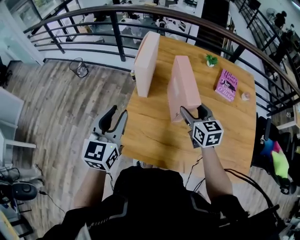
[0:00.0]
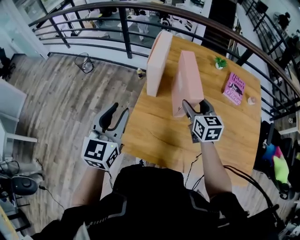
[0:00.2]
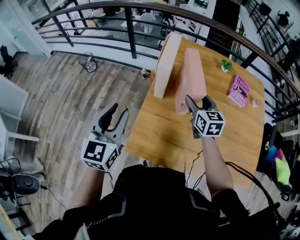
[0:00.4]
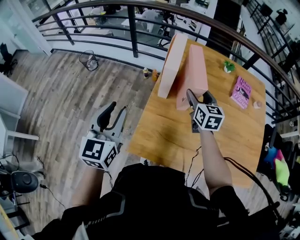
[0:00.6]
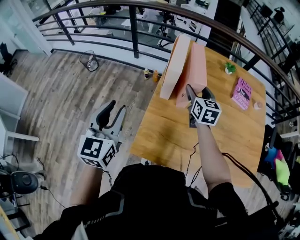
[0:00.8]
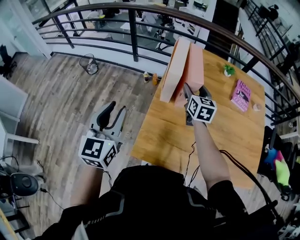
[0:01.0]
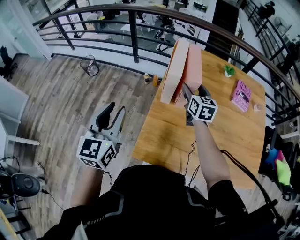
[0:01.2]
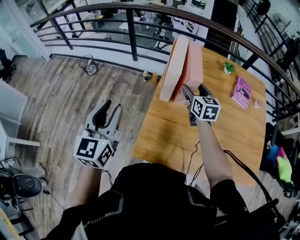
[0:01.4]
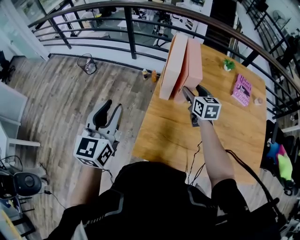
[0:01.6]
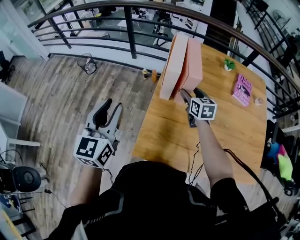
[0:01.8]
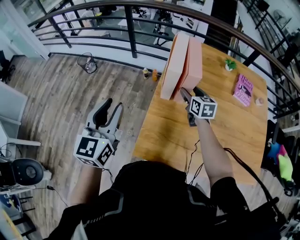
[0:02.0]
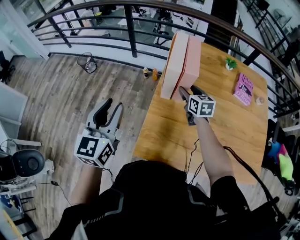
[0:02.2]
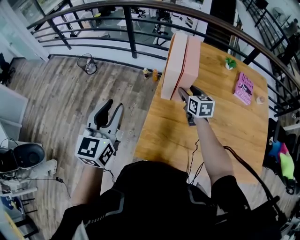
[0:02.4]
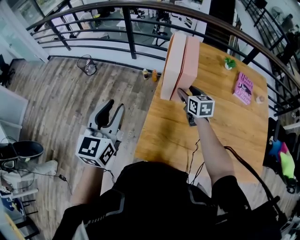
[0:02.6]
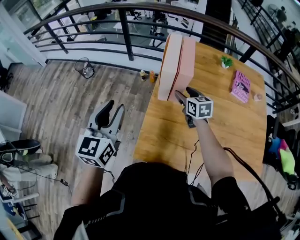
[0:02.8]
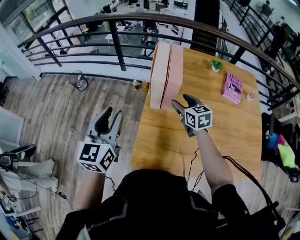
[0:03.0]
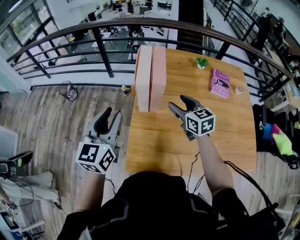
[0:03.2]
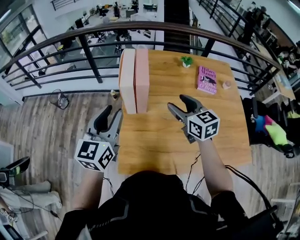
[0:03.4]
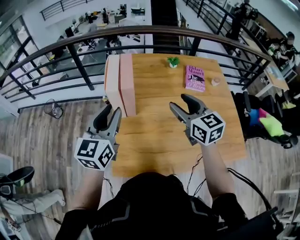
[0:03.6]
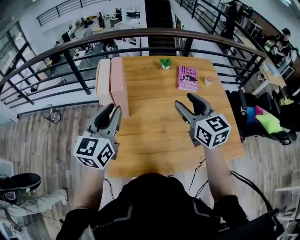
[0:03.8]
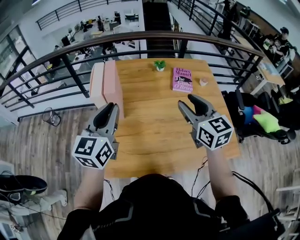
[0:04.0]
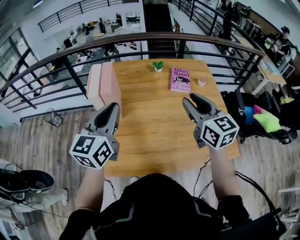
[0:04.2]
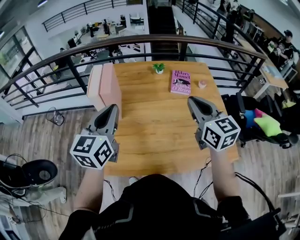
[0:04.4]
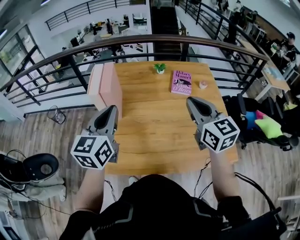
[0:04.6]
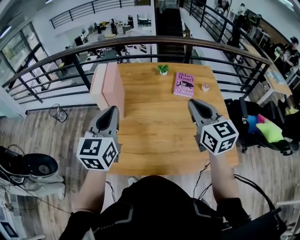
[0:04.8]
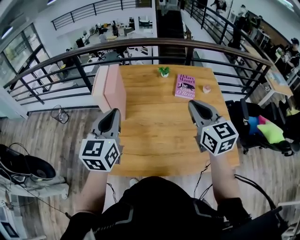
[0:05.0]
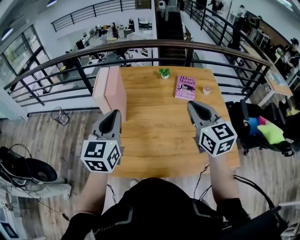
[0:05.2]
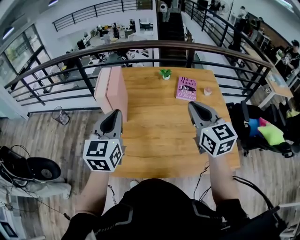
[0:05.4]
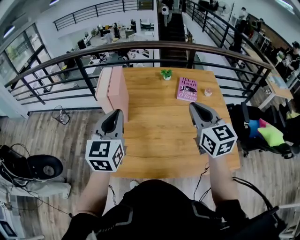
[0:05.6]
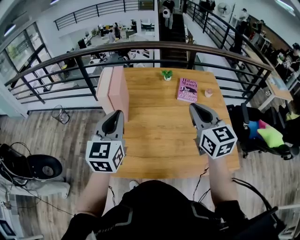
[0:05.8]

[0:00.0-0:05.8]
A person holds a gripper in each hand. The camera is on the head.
0.0 to 1.4 s: The right gripper is displaced forward and to the left by roughly 15 cm, while the left gripper goes roughly 15 cm to the left.
1.4 to 2.8 s: The right gripper shifts approximately 5 cm downward.
2.8 to 4.4 s: The right gripper travels to the right, upward and backward by roughly 50 cm, swivels approximately 30 degrees, and closes up. The left gripper heads to the right, covering roughly 30 cm, and closes.
4.4 to 5.8 s: The grippers move only a little.

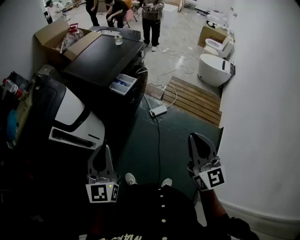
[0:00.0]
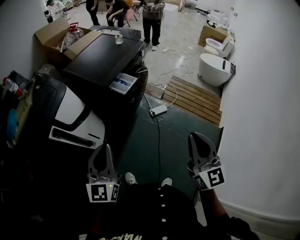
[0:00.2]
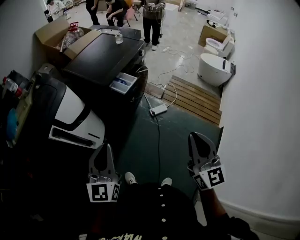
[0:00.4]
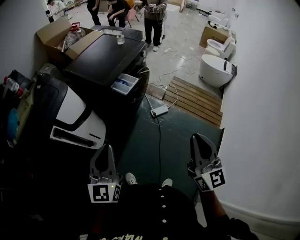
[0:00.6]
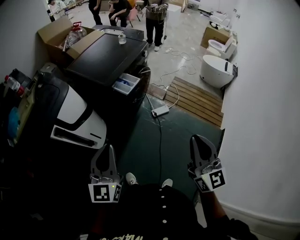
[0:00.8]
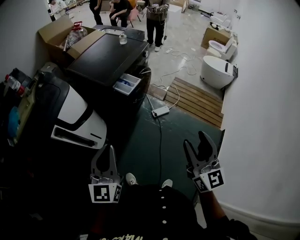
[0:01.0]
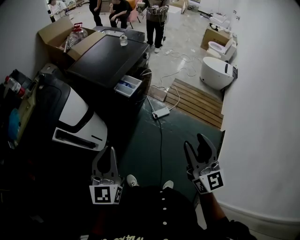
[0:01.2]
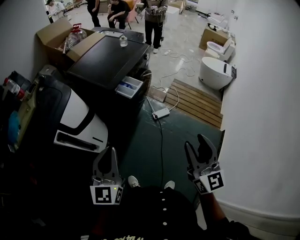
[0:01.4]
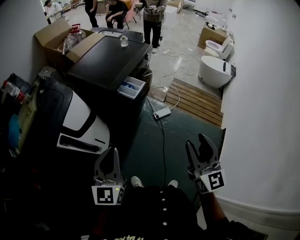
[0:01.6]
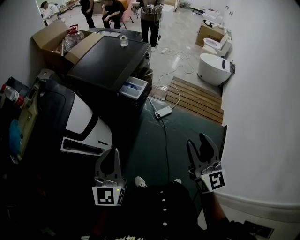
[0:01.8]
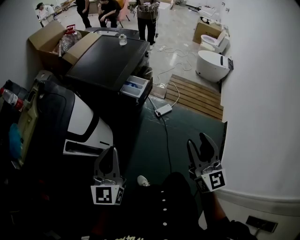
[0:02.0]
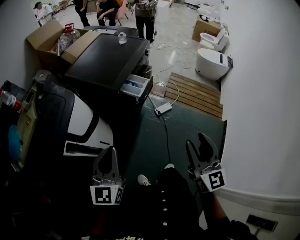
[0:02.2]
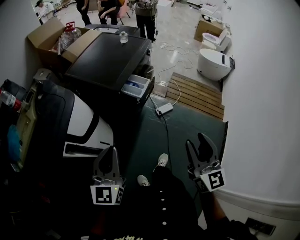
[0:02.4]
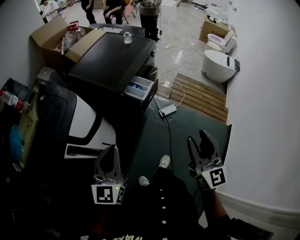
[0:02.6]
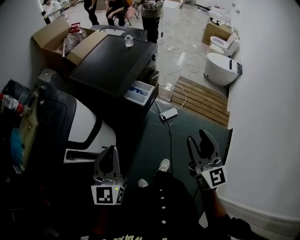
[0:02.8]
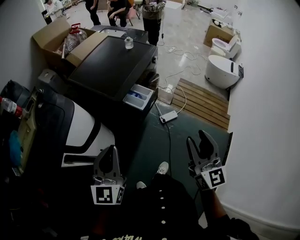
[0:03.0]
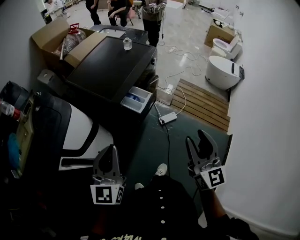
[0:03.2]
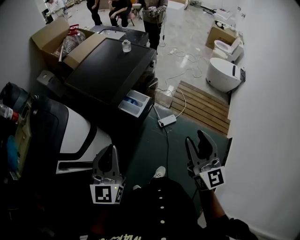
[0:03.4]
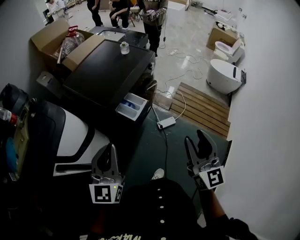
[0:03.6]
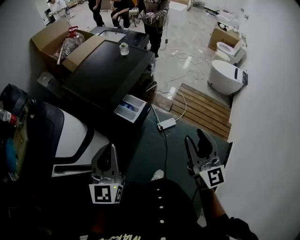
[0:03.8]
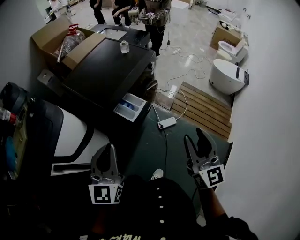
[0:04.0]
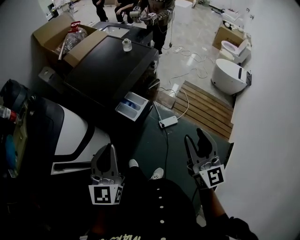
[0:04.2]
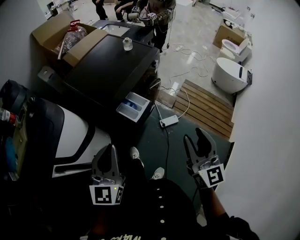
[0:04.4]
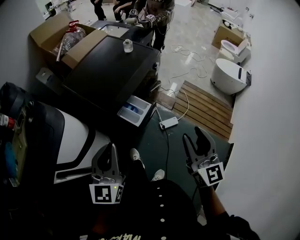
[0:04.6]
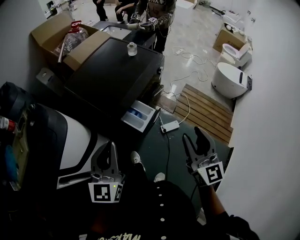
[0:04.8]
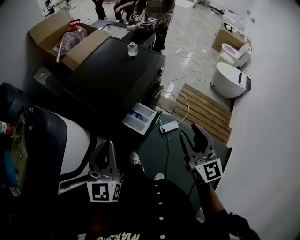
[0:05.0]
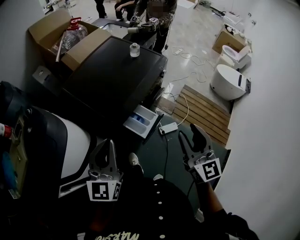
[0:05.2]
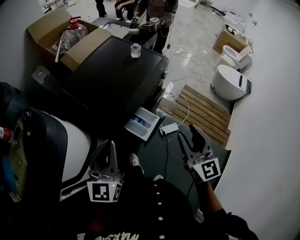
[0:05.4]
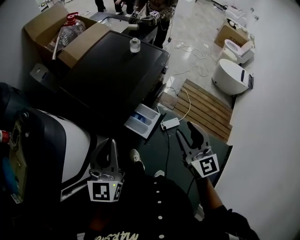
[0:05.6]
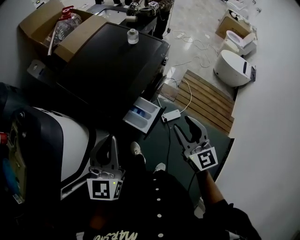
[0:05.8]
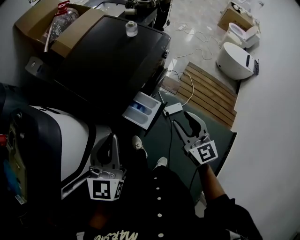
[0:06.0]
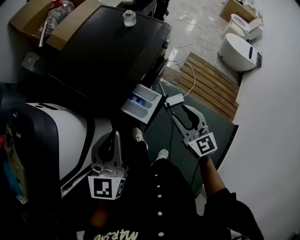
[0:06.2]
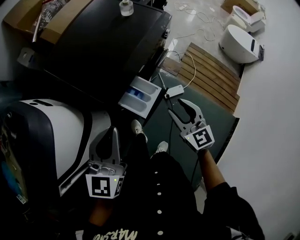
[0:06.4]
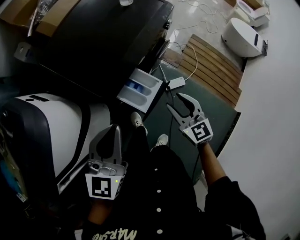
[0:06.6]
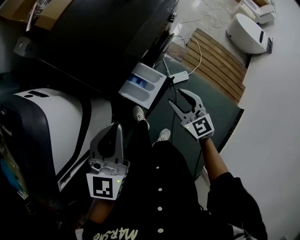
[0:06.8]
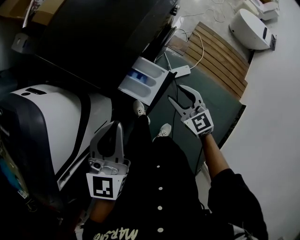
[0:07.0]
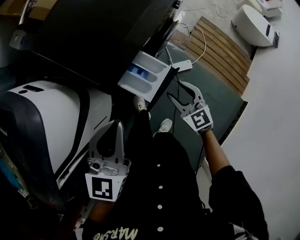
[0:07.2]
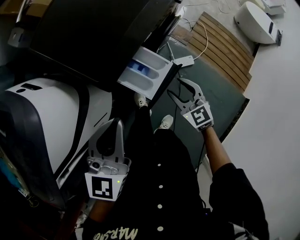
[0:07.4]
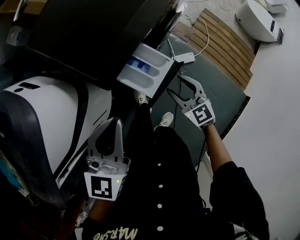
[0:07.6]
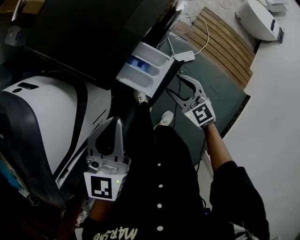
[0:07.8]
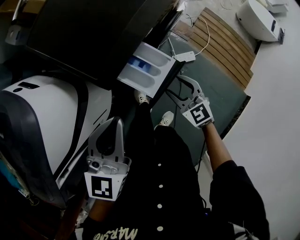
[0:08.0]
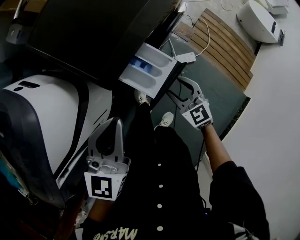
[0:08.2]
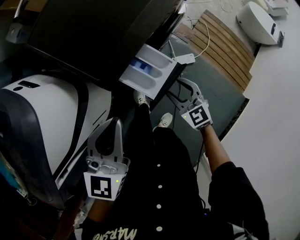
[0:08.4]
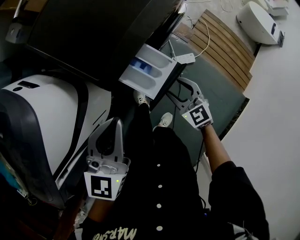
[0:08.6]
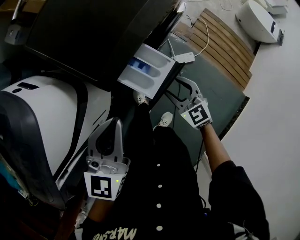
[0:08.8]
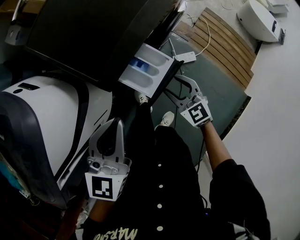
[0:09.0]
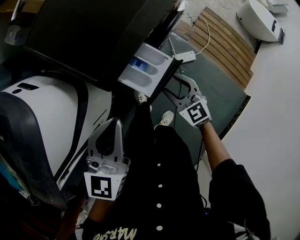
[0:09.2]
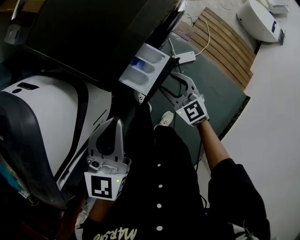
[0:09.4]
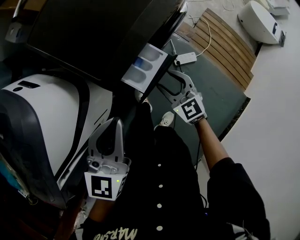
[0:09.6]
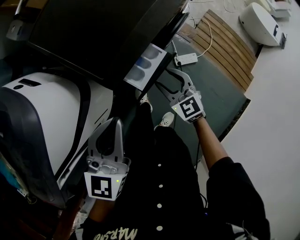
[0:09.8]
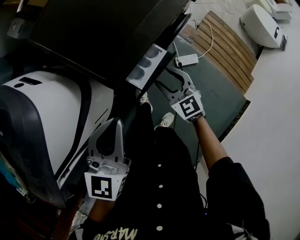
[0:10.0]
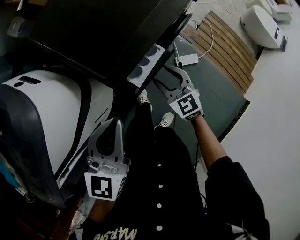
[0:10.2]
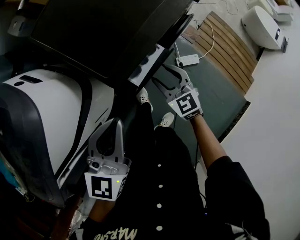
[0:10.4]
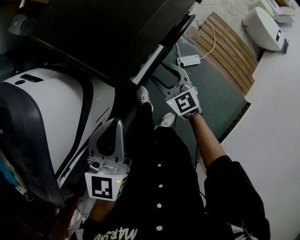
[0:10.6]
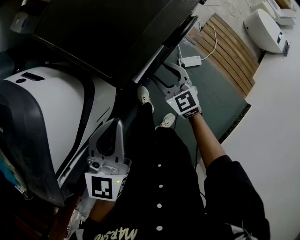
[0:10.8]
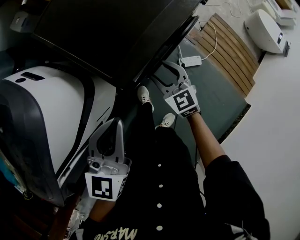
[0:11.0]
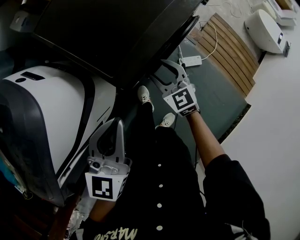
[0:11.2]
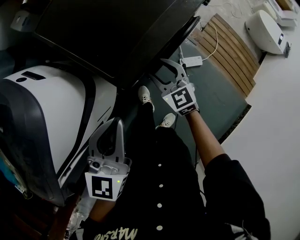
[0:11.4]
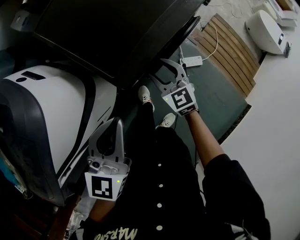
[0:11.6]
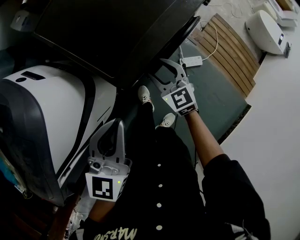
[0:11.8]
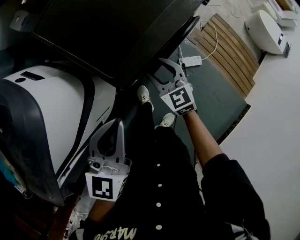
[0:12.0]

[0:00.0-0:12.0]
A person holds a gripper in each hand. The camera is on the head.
0.0 to 1.6 s: The right gripper goes approximately 5 cm to the left, and opens. Meanwhile the left gripper shifts by about 5 cm.
1.6 to 3.0 s: The two grippers go some 10 cm forward.
3.0 to 4.4 s: Both grippers move forward and to the right, about 10 cm.
4.4 to 6.0 s: The right gripper moves forward, downward and to the left, about 20 cm. The left gripper goes about 15 cm forward.
6.0 to 7.6 s: The right gripper moves downward, about 20 cm, and swivels about 30 degrees, while the left gripper heads downward, covering about 10 cm.
7.6 to 9.0 s: There are only small adjustments of the grippers.
9.0 to 10.4 s: The right gripper goes about 10 cm forward and to the left.
10.4 to 12.0 s: The grippers move only a little.

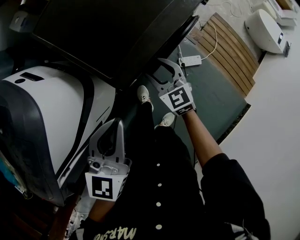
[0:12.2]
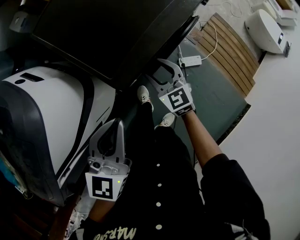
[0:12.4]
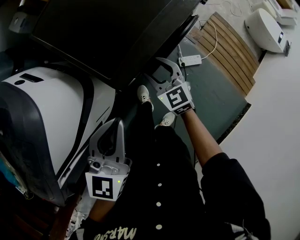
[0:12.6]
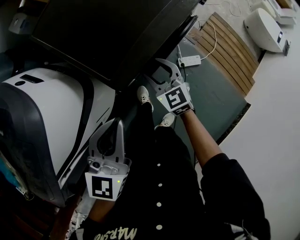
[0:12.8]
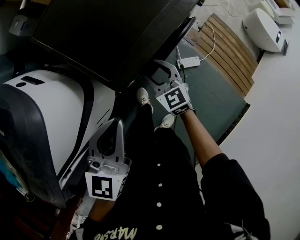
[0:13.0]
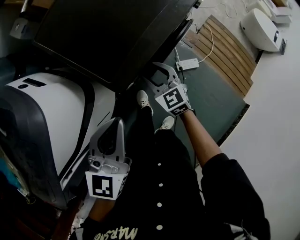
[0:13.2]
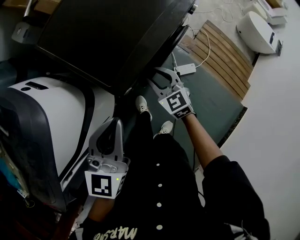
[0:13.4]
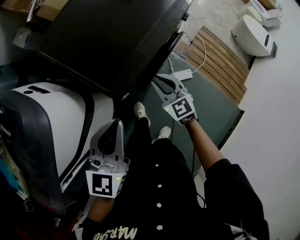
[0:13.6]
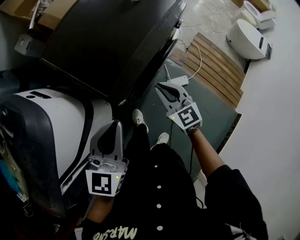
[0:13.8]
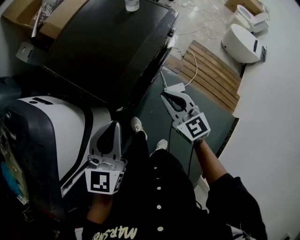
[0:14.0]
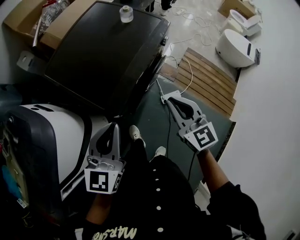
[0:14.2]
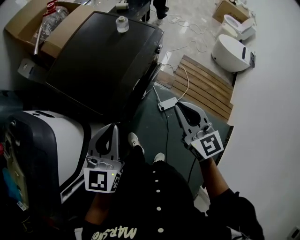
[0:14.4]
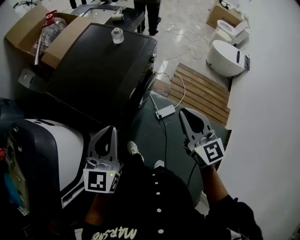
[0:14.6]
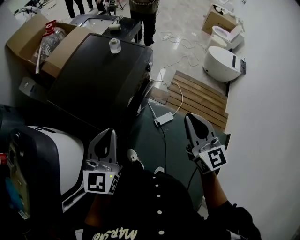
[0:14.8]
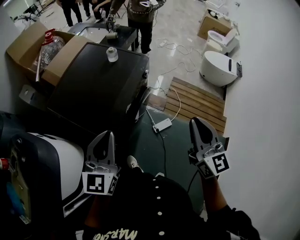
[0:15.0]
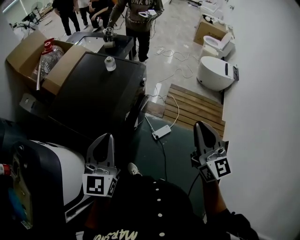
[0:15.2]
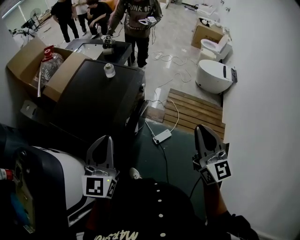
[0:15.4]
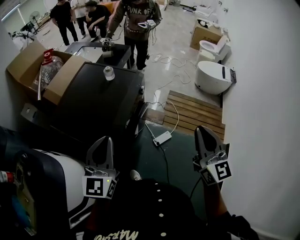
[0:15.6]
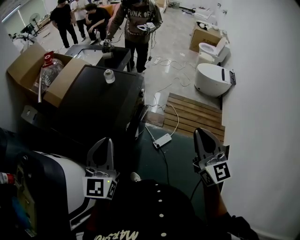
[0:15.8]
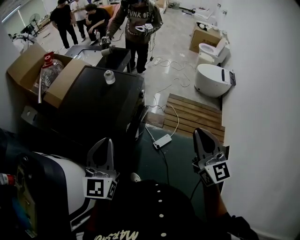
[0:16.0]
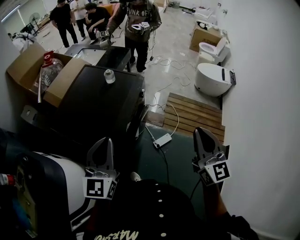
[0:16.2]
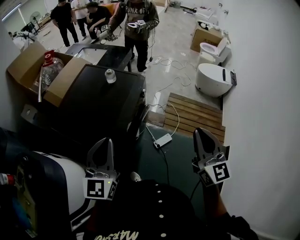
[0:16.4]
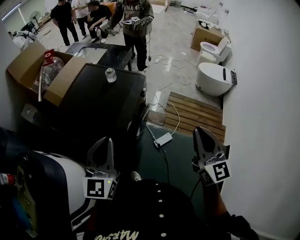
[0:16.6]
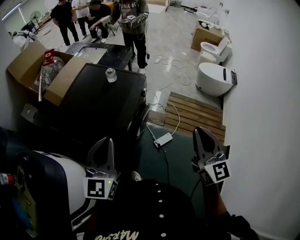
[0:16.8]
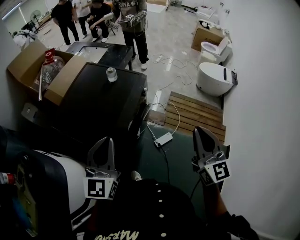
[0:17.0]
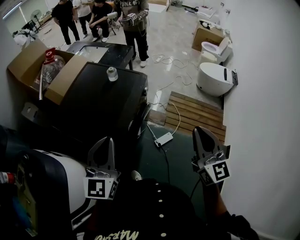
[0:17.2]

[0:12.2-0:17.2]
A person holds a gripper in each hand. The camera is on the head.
12.2 to 13.8 s: The right gripper is displaced upward and to the right by approximately 10 cm, and closes its fingers, while the left gripper goes about 5 cm upward.
13.8 to 15.6 s: The left gripper shifts roughly 10 cm upward and forward. Meanwhile the right gripper is displaced upward and to the right by about 35 cm, and changes its angle by approximately 40 degrees.
15.6 to 17.2 s: The grippers make only small movements.

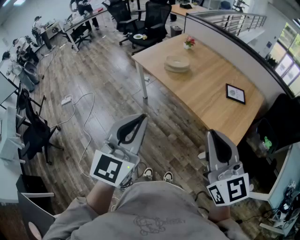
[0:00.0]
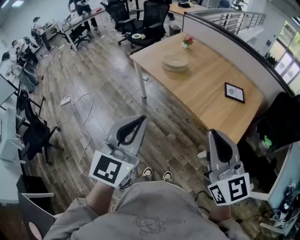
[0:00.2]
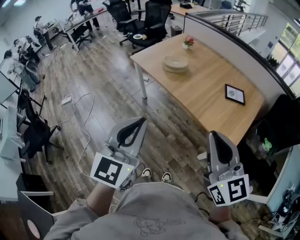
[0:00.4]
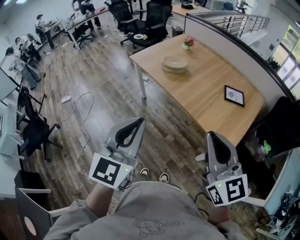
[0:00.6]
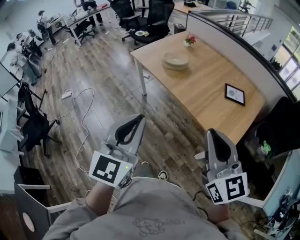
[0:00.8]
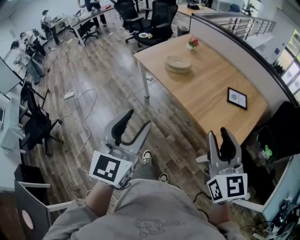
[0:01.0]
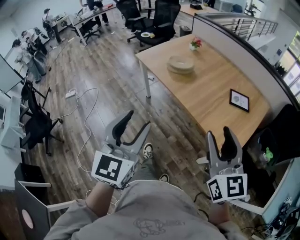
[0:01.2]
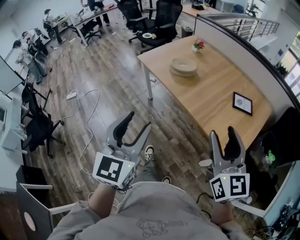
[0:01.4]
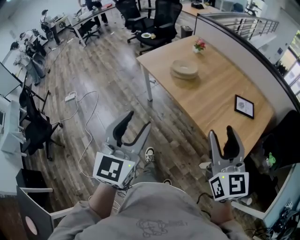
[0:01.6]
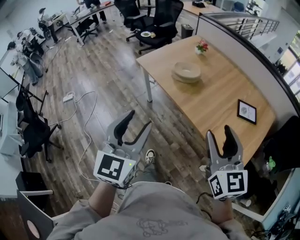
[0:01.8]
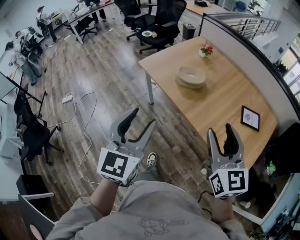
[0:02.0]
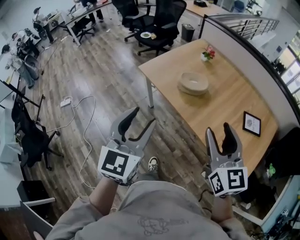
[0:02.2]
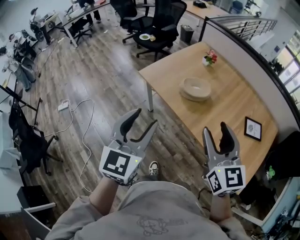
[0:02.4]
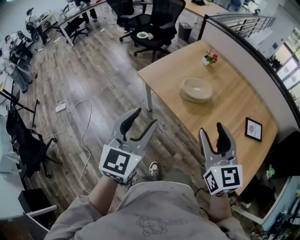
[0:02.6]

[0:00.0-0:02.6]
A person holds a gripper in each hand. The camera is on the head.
0.0 to 1.2 s: The left gripper moves roughly 5 cm, and opens up. The right gripper shifts roughly 10 cm to the right and forward, and opens up.
1.2 to 2.6 s: Both grippers move forward and to the left, approximately 35 cm.
